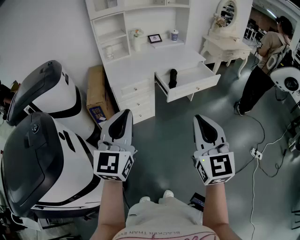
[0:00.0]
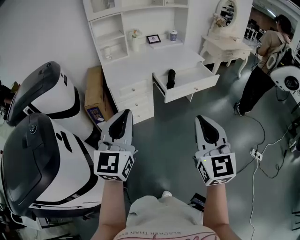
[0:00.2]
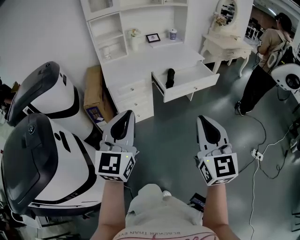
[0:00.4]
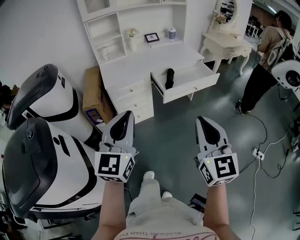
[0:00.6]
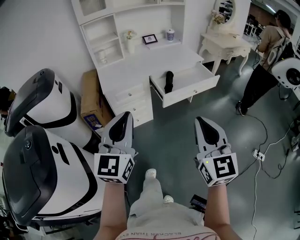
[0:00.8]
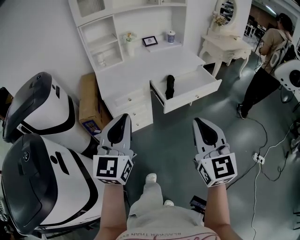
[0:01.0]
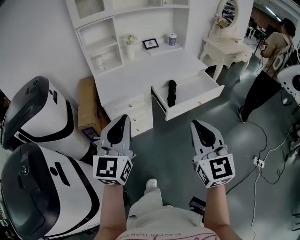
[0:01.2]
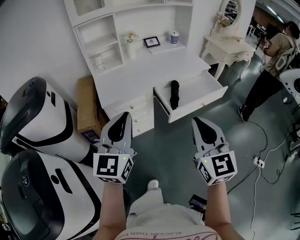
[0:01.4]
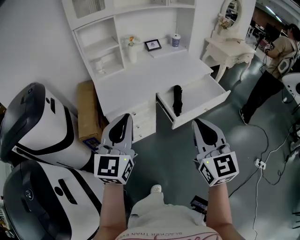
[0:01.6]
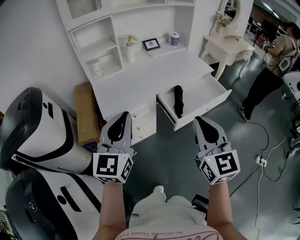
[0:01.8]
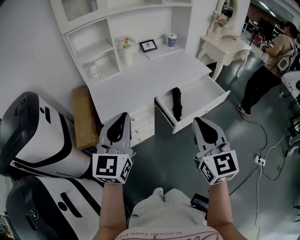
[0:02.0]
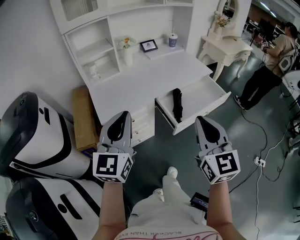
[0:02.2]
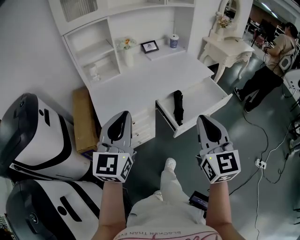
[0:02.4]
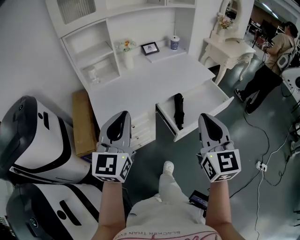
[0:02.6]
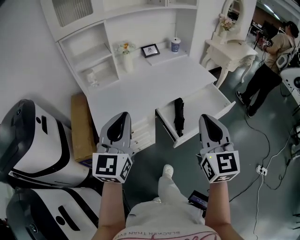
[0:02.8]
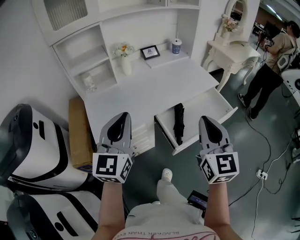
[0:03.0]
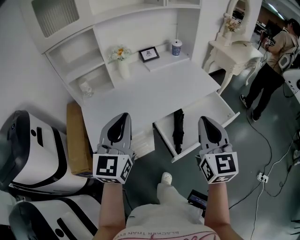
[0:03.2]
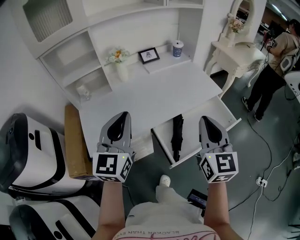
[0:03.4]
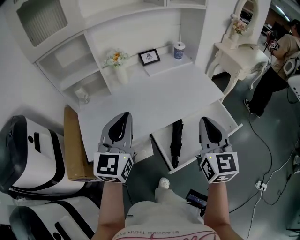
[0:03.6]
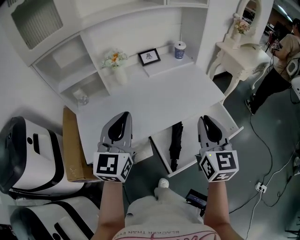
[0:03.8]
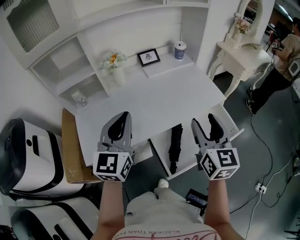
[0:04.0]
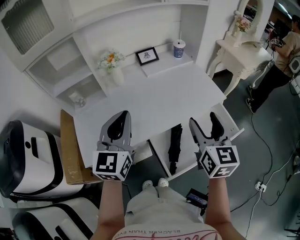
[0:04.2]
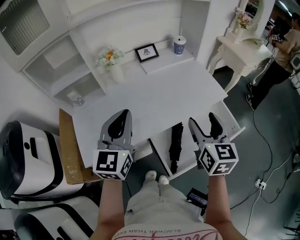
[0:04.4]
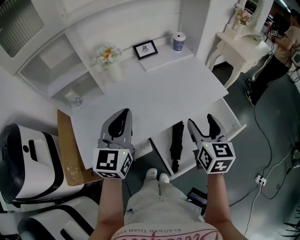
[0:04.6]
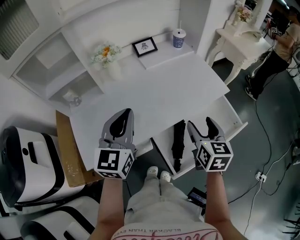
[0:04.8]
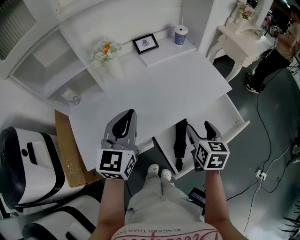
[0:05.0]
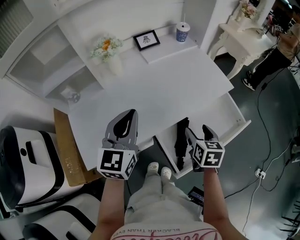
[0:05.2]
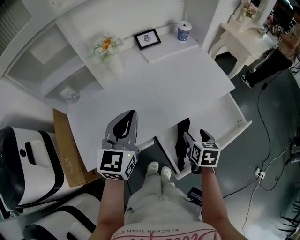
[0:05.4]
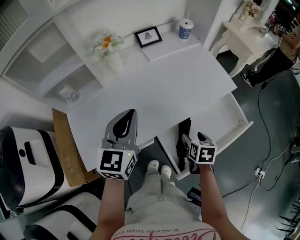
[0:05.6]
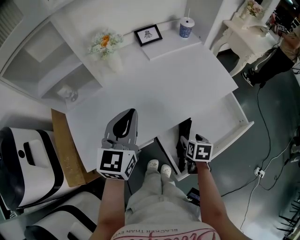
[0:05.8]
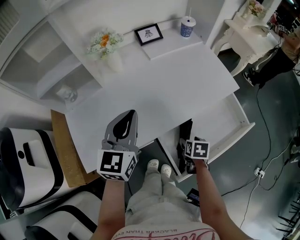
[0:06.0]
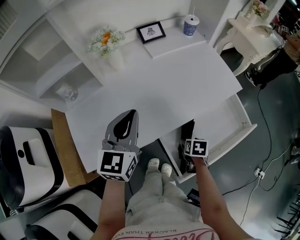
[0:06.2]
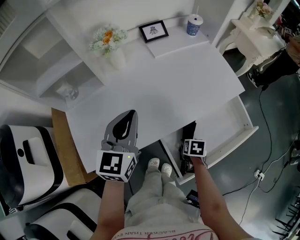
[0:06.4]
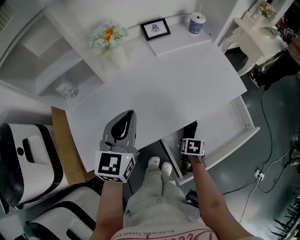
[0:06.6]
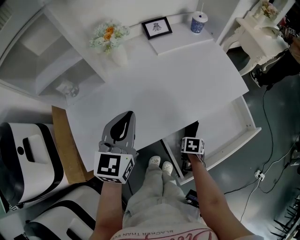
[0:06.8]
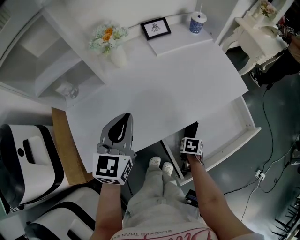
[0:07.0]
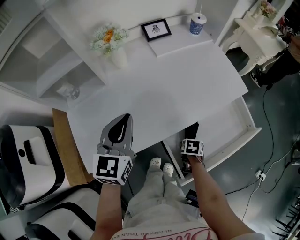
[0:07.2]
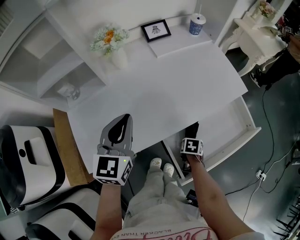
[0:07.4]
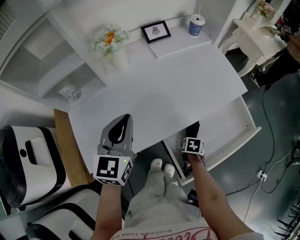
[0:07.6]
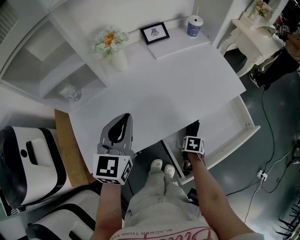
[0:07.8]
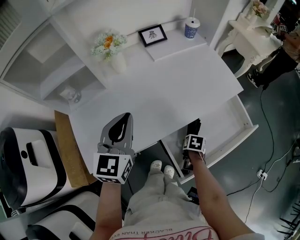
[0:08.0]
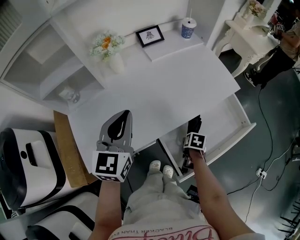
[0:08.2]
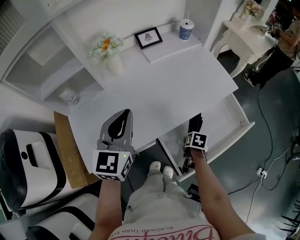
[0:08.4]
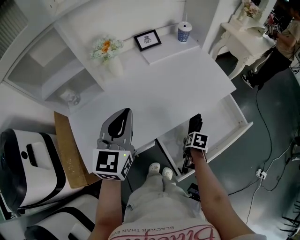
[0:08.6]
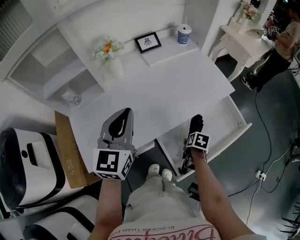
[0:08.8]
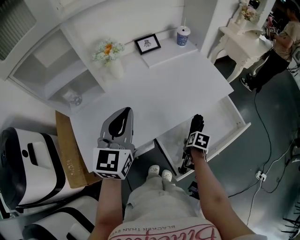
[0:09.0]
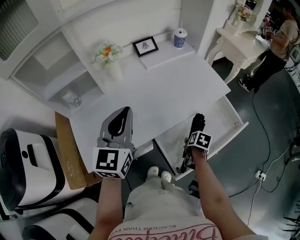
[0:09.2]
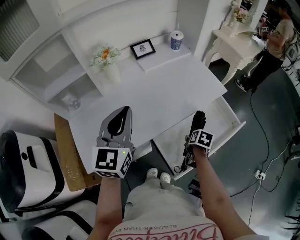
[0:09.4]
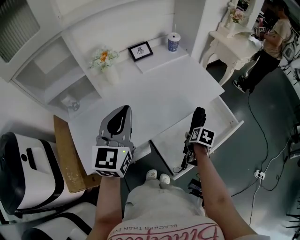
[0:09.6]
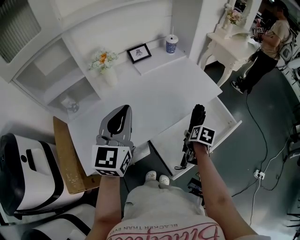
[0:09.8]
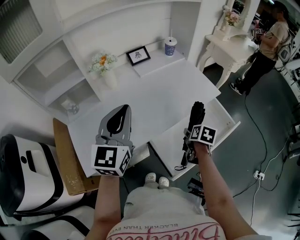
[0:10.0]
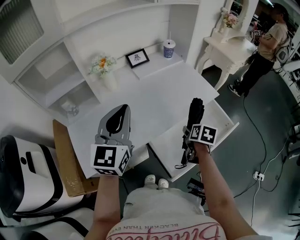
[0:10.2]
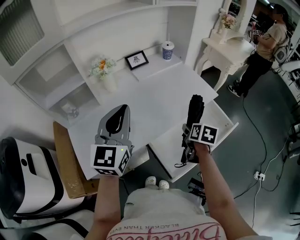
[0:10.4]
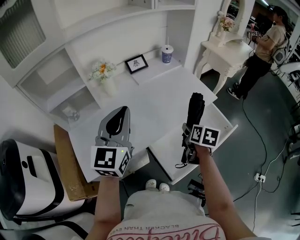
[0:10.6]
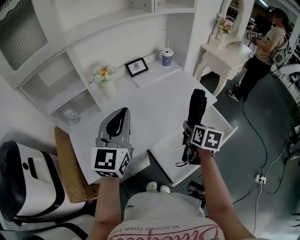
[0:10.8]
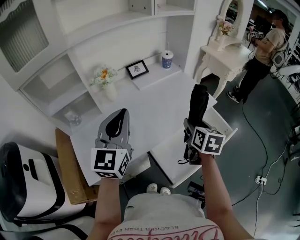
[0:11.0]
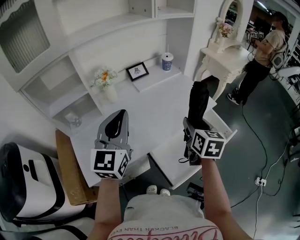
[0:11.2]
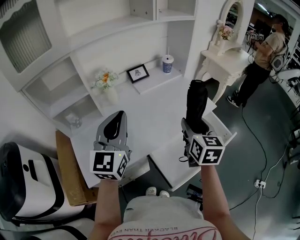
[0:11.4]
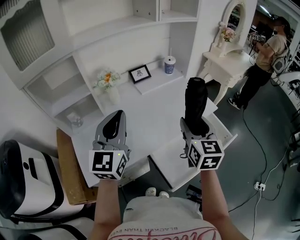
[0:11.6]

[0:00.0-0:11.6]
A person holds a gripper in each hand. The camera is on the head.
0:00.0 to 0:01.4: Both grippers move forward, some 20 cm.
0:01.4 to 0:02.8: Both grippers move forward, roughly 20 cm.
0:02.8 to 0:04.4: Both grippers move forward, about 25 cm. The right gripper opens its fingers.
0:04.4 to 0:05.8: The left gripper goes approximately 10 cm downward and forward; the right gripper is displaced downward by roughly 30 cm, and points its fingers some 40 degrees further downward.
0:05.8 to 0:07.2: The right gripper moves downward, some 15 cm.
0:07.2 to 0:08.8: Both grippers travel together upward, some 5 cm.
0:08.8 to 0:10.2: The right gripper shifts approximately 15 cm upward, and rotates roughly 20 degrees; the left gripper shifts about 5 cm upward.
0:10.2 to 0:11.6: The right gripper moves upward, about 25 cm, and angles its fingers upward, by roughly 40 degrees.

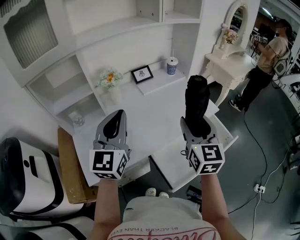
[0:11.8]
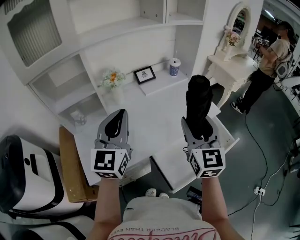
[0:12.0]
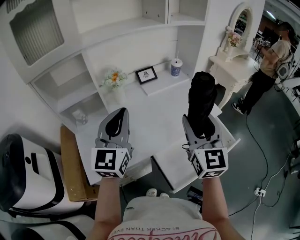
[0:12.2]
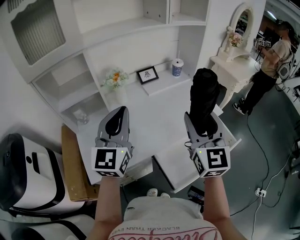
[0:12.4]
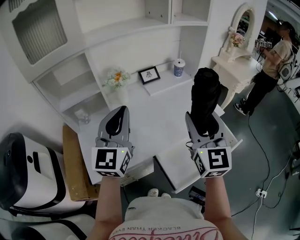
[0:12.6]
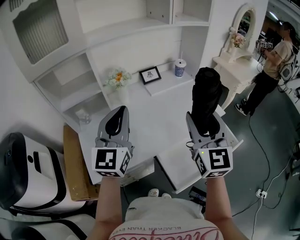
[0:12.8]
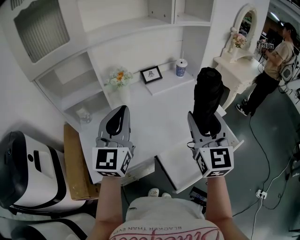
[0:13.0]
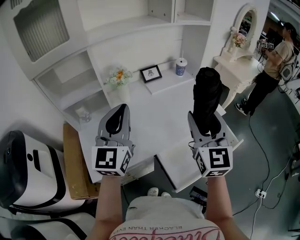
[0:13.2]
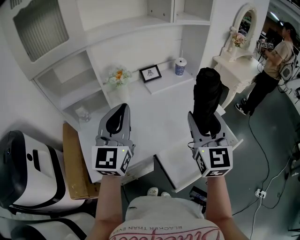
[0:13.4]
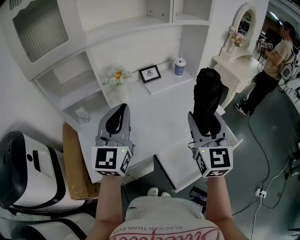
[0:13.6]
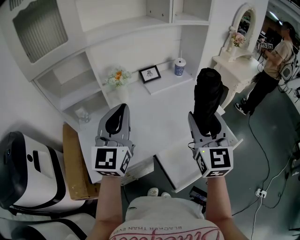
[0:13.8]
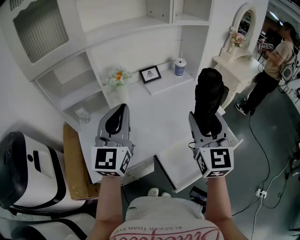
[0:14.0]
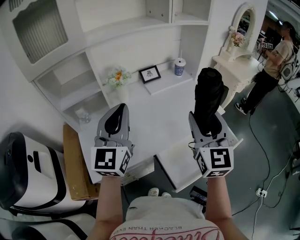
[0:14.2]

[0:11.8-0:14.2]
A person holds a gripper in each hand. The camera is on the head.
0:11.8 to 0:13.0: The right gripper goes roughly 5 cm upward.
0:13.0 to 0:14.2: Neither gripper changes place.

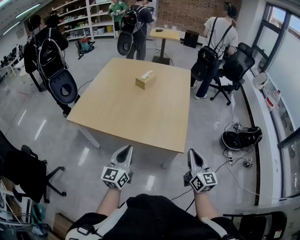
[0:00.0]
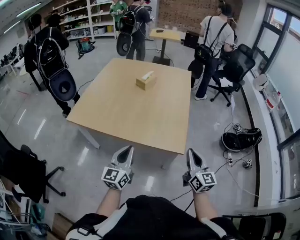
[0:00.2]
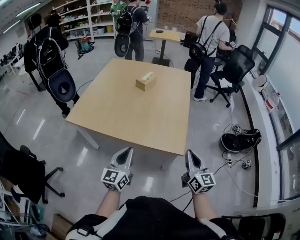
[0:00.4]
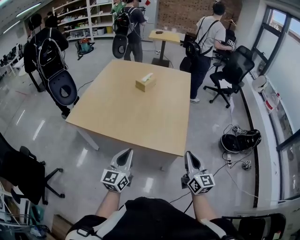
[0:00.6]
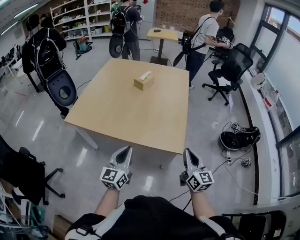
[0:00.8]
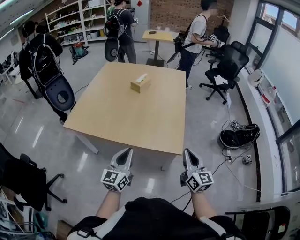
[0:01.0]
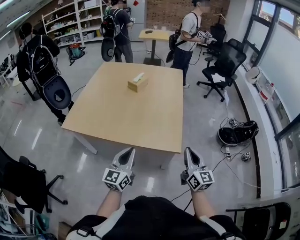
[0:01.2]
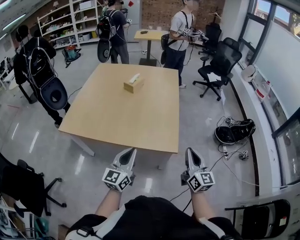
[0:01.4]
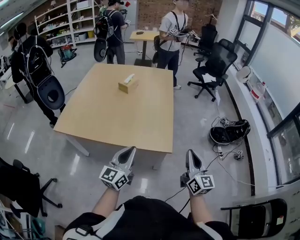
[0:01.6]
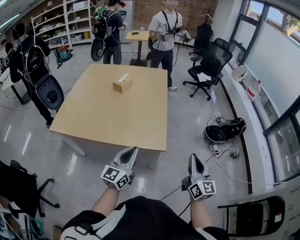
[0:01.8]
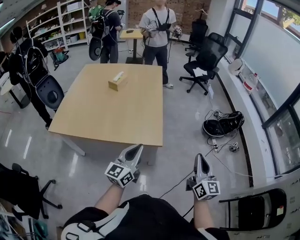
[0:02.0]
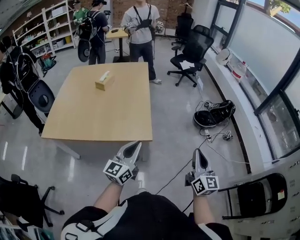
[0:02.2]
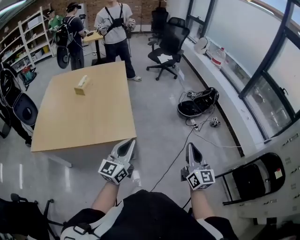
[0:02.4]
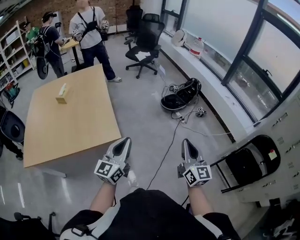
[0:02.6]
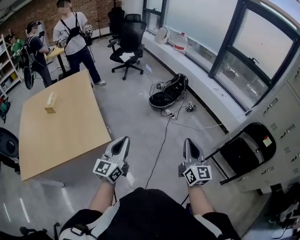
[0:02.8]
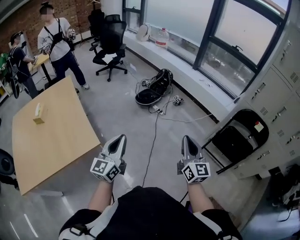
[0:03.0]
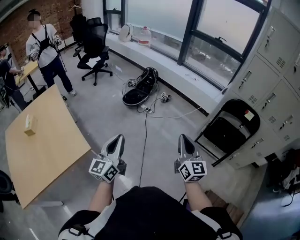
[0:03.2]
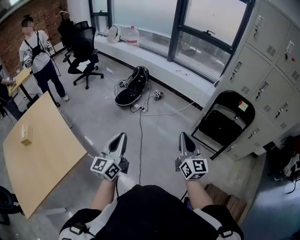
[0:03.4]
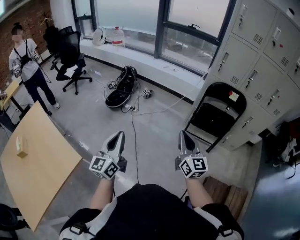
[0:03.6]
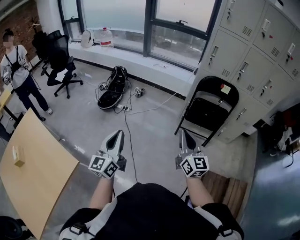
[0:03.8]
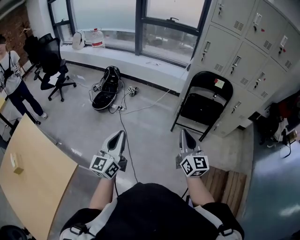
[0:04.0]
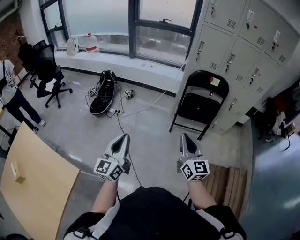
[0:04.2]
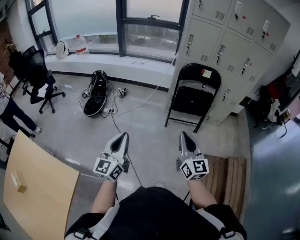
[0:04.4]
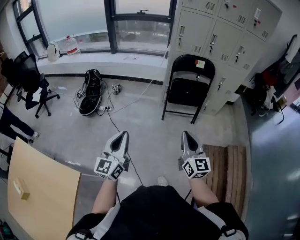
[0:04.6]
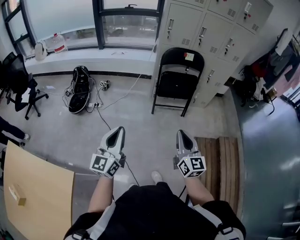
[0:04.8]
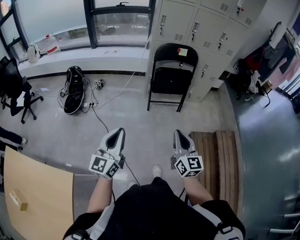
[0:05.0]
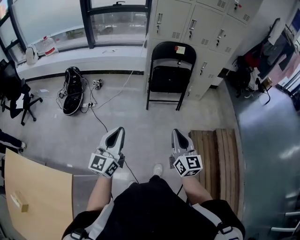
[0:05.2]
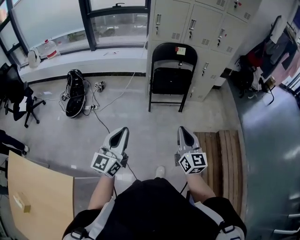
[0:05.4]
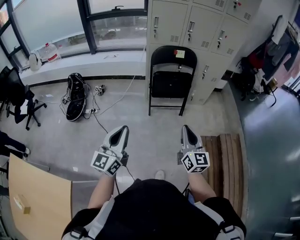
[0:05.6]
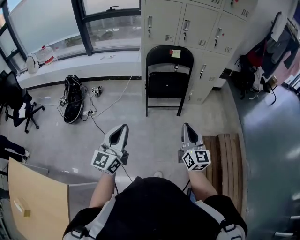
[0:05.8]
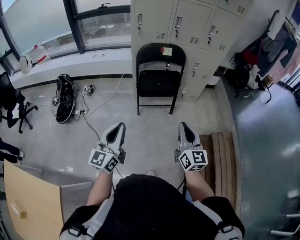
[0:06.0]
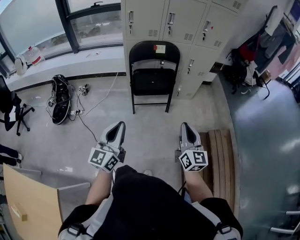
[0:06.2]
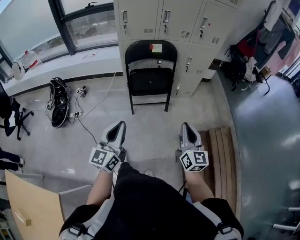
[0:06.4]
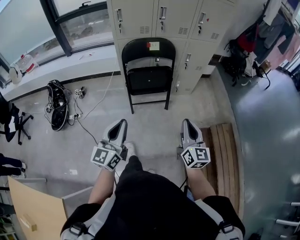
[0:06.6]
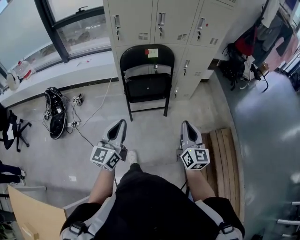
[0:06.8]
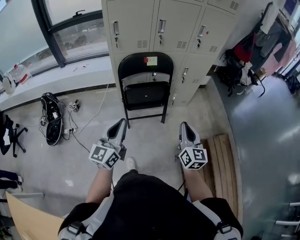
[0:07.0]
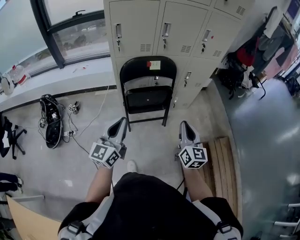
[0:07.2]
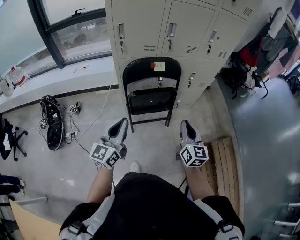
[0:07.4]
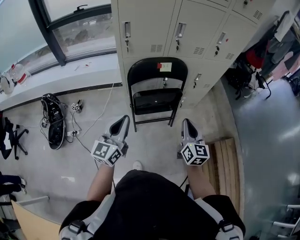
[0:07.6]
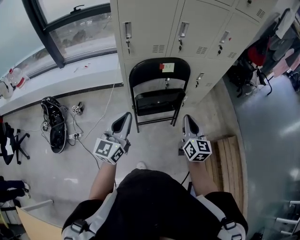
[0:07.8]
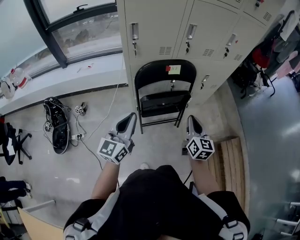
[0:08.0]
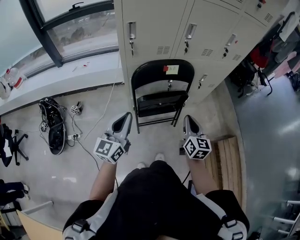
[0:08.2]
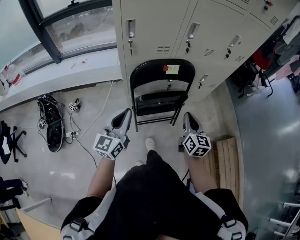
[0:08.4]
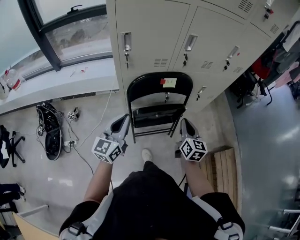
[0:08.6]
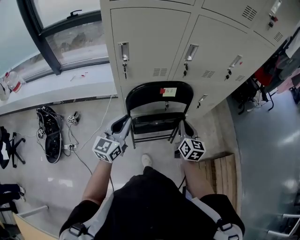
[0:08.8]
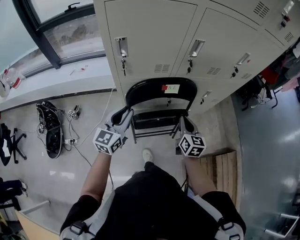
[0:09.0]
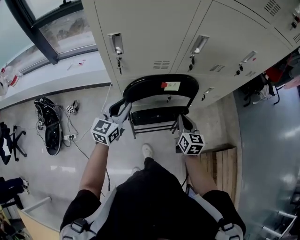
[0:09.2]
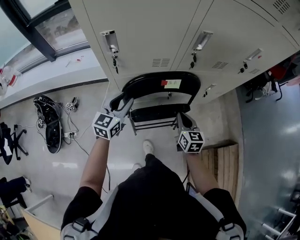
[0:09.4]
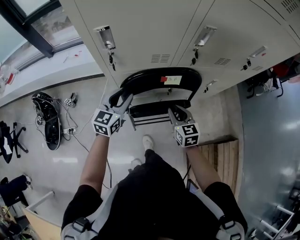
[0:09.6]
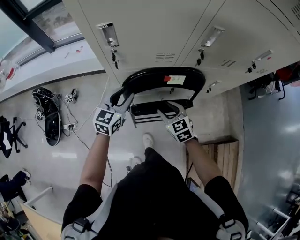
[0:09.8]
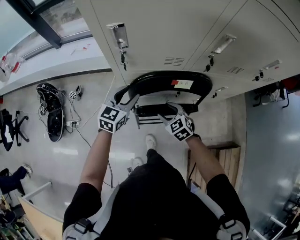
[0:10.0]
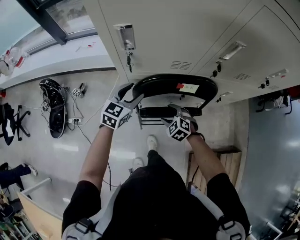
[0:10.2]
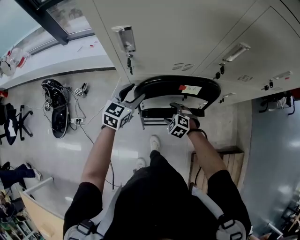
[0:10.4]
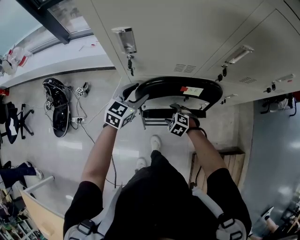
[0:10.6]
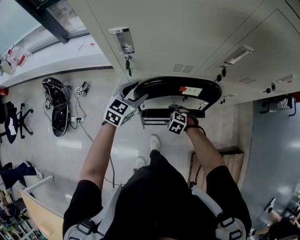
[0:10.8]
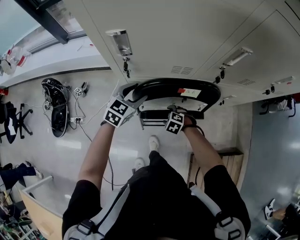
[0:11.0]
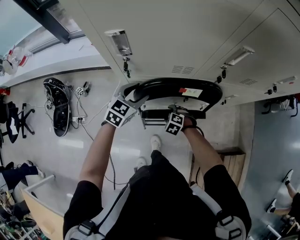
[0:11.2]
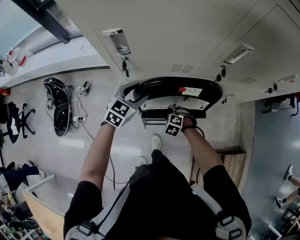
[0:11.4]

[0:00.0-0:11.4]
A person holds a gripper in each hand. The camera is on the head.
0:00.0 to 0:01.4: The left gripper moves about 5 cm.
0:01.4 to 0:02.8: The left gripper shifts by roughly 30 cm, and changes its angle by approximately 40 degrees. The right gripper shifts by about 35 cm, and changes its angle by about 40 degrees.
0:02.8 to 0:04.2: The right gripper ends up about 20 cm from where it was, and changes its angle by about 40 degrees, while the left gripper moves approximately 25 cm, and turns by approximately 40 degrees.
0:04.2 to 0:05.6: Both grippers travel together to the right, some 15 cm. The left gripper rotates some 20 degrees.
0:05.6 to 0:07.2: Both grippers travel together forward, about 30 cm.
0:07.2 to 0:08.6: Both grippers travel together forward and to the left, roughly 25 cm.
0:08.6 to 0:10.0: The left gripper heads forward and downward, covering roughly 20 cm, turns by approximately 20 degrees, and opens its fingers. The right gripper shifts some 25 cm downward, to the left and forward, points its fingers approximately 30 degrees further downward, and opens.
0:10.0 to 0:11.4: The right gripper is displaced downward by roughly 15 cm, and rotates about 40 degrees, while the left gripper ends up approximately 5 cm from where it was.
